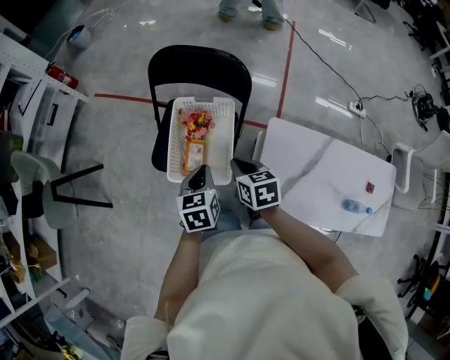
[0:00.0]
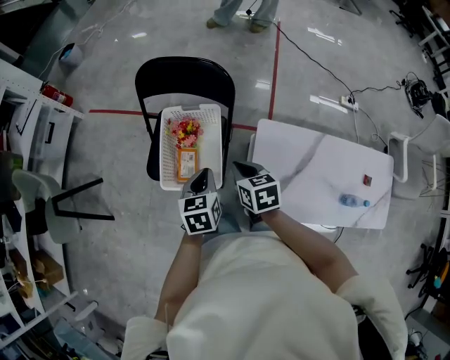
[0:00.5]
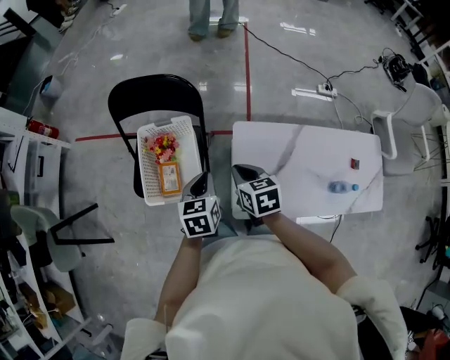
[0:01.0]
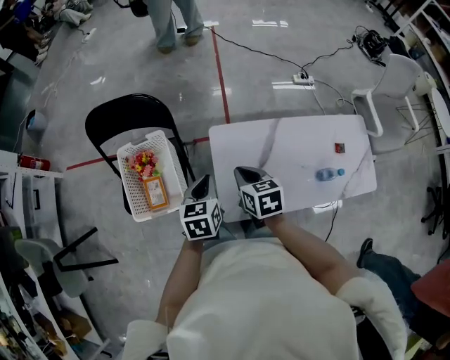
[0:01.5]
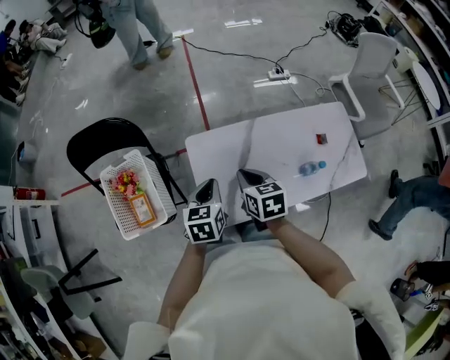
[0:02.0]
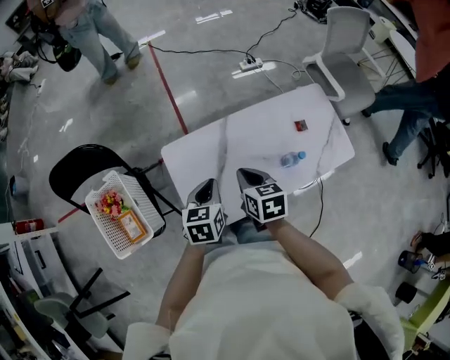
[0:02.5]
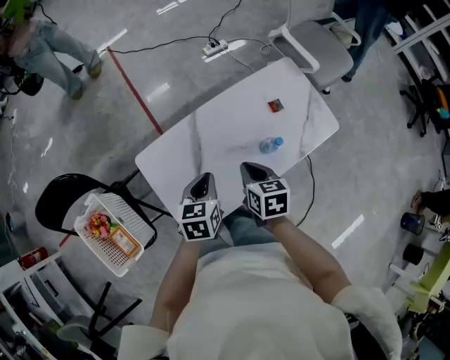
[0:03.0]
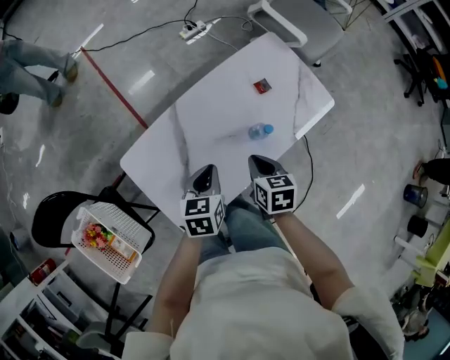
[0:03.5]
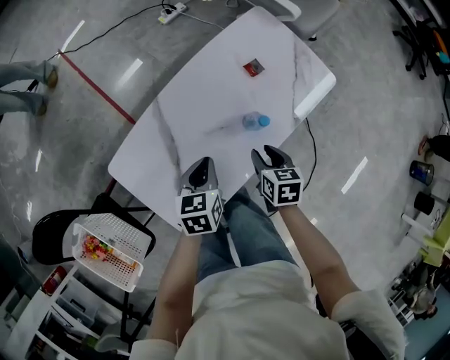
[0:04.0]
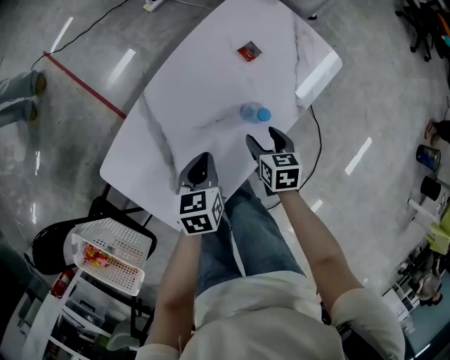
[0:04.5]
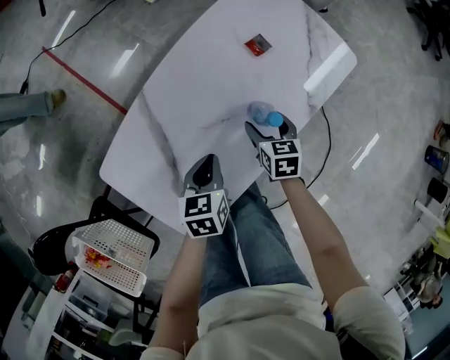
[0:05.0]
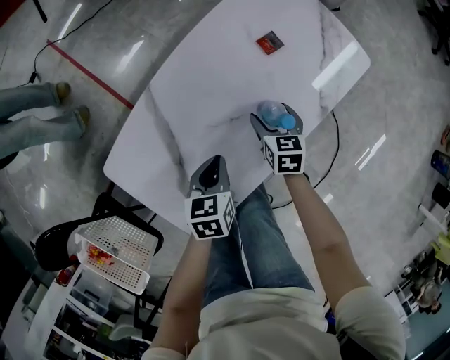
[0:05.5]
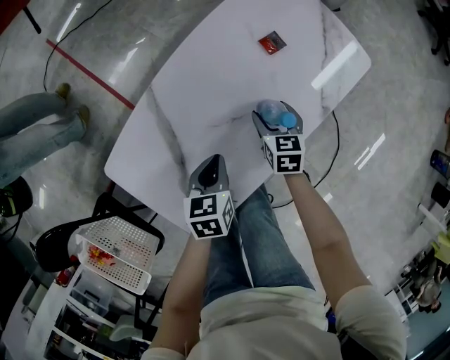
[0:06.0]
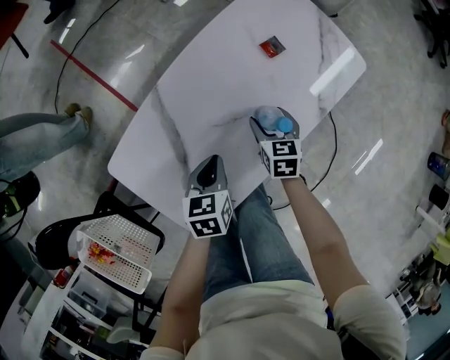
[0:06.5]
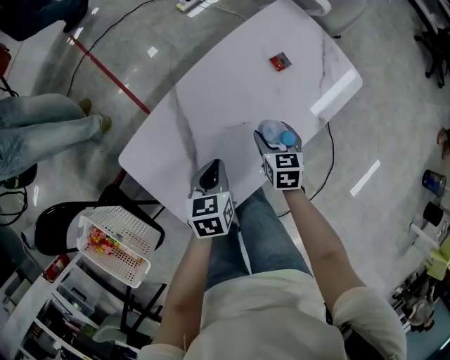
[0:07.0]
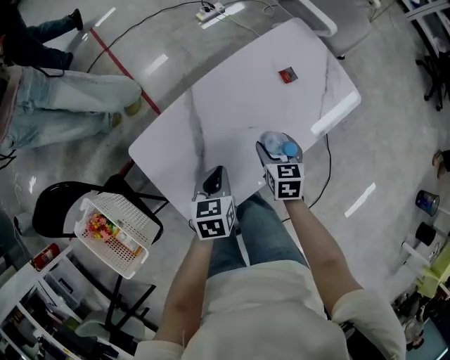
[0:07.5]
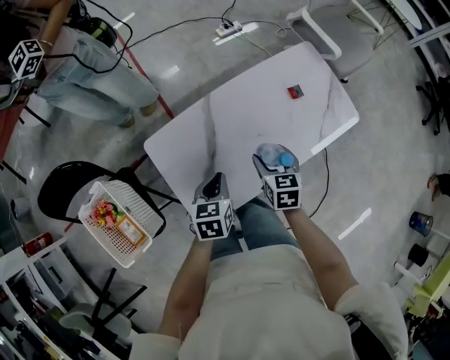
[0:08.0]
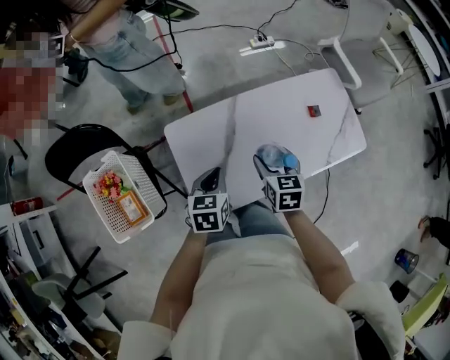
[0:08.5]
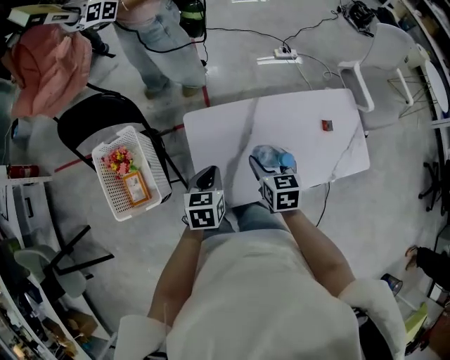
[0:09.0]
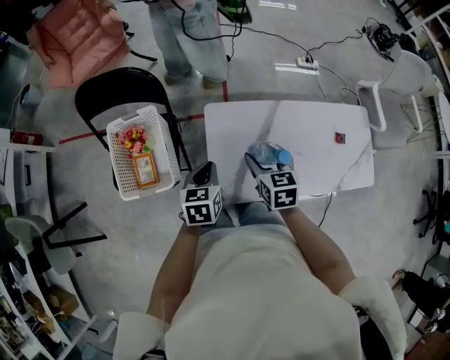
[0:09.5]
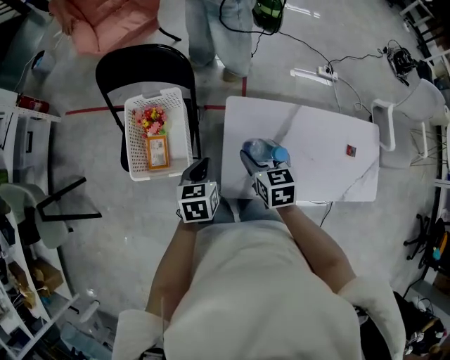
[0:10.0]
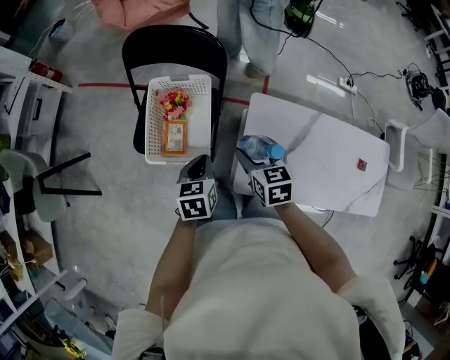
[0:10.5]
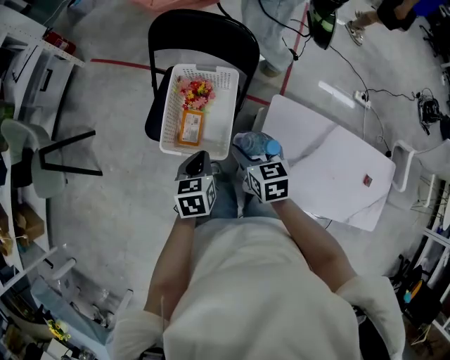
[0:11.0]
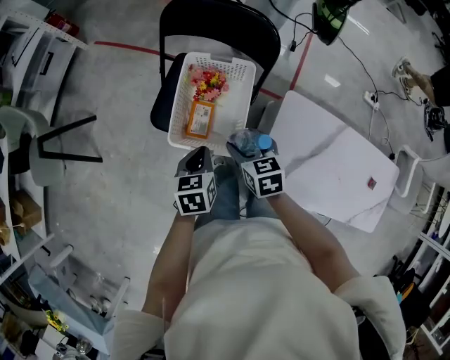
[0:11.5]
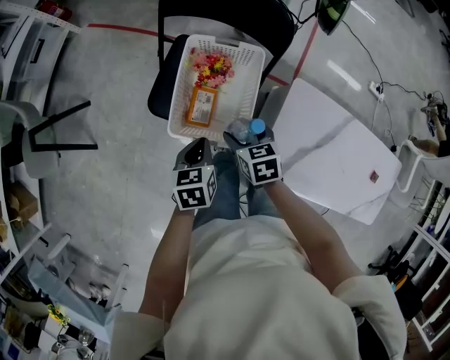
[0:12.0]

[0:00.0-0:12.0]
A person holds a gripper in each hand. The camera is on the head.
0:00.0 to 0:02.0: The right gripper ends up about 35 cm from where it was, and changes its angle by roughly 30 degrees. The left gripper moves roughly 35 cm, and swivels roughly 30 degrees.
0:02.0 to 0:04.0: The left gripper shifts by about 30 cm, and rotates approximately 30 degrees; the right gripper shifts by approximately 40 cm, and swivels some 40 degrees.
0:04.0 to 0:06.0: The right gripper goes approximately 15 cm downward and forward, and opens up; the left gripper goes approximately 10 cm downward.
0:06.0 to 0:08.0: The left gripper goes roughly 20 cm upward, backward and to the left. The right gripper goes about 25 cm upward, to the left and backward.
0:08.0 to 0:10.0: The right gripper shifts by approximately 35 cm, and rotates approximately 40 degrees. Meanwhile the left gripper ends up roughly 30 cm from where it was, and rotates roughly 40 degrees.
0:10.0 to 0:12.0: The left gripper goes approximately 20 cm to the left, and rotates some 20 degrees; the right gripper travels to the left and downward by some 30 cm, and changes its angle by some 30 degrees.

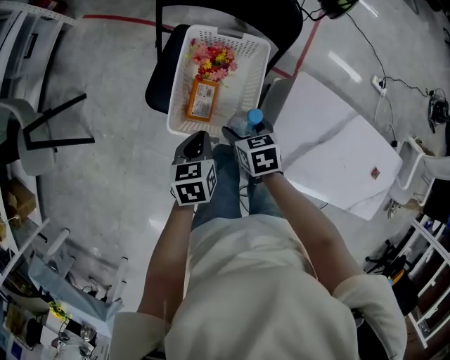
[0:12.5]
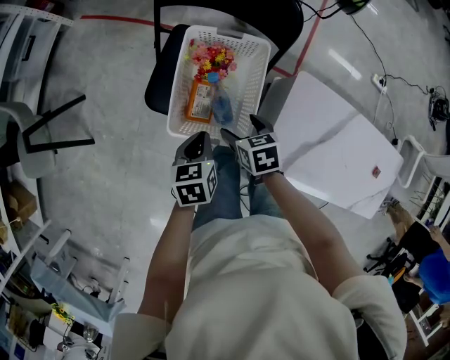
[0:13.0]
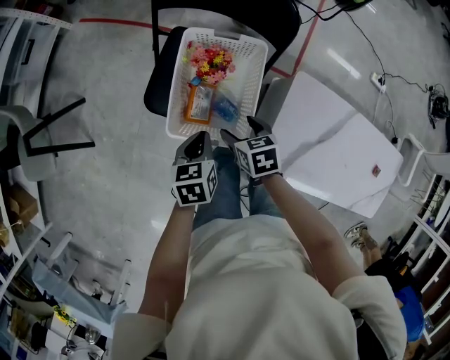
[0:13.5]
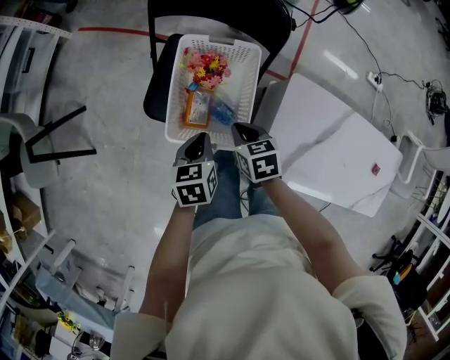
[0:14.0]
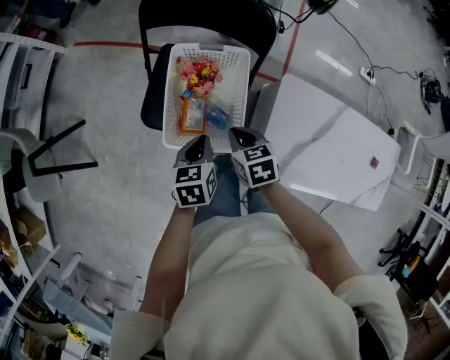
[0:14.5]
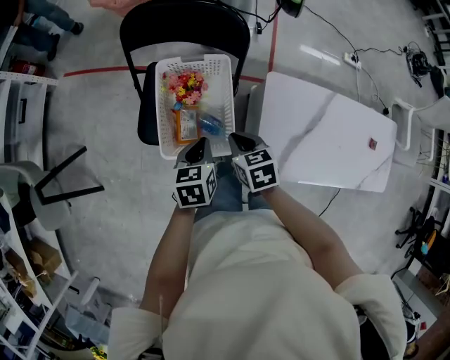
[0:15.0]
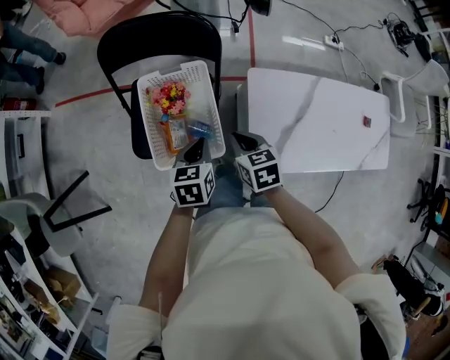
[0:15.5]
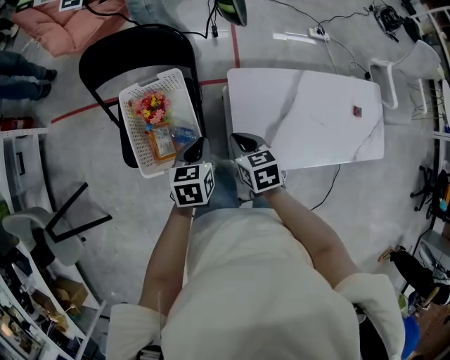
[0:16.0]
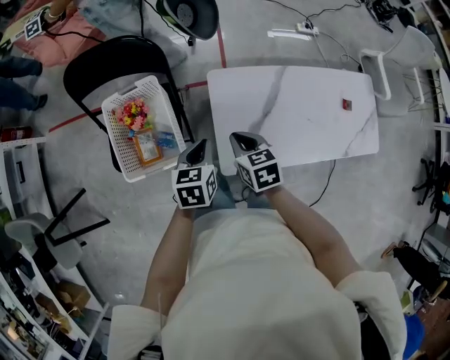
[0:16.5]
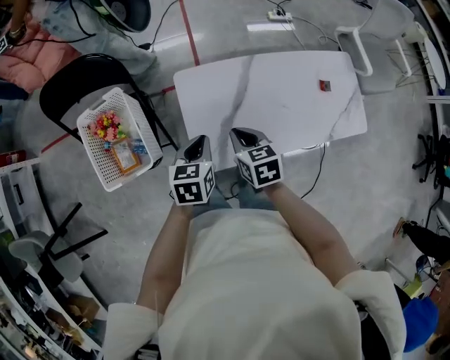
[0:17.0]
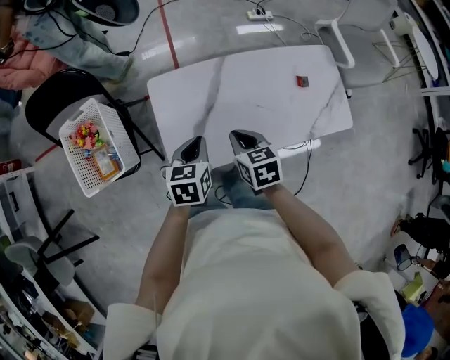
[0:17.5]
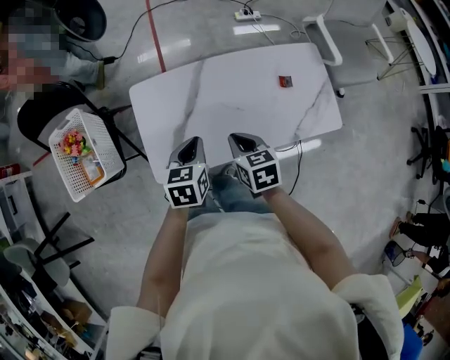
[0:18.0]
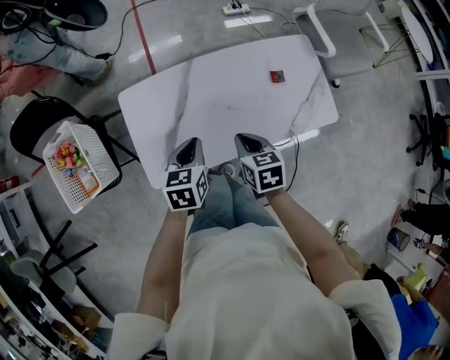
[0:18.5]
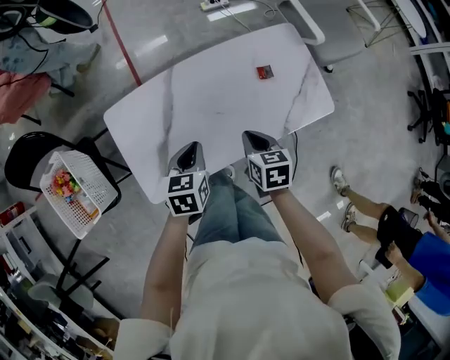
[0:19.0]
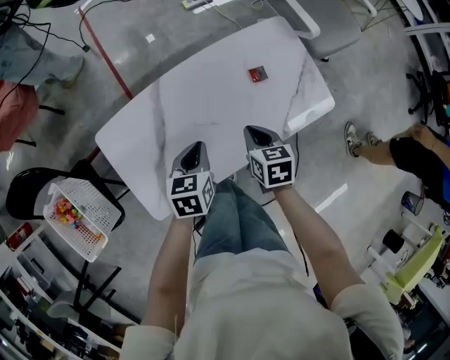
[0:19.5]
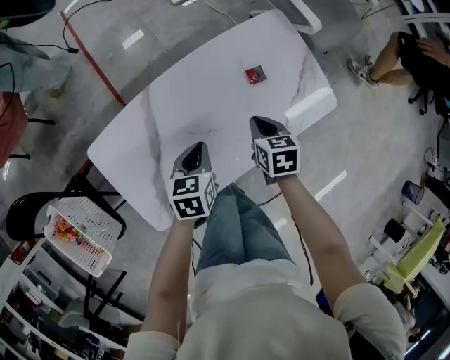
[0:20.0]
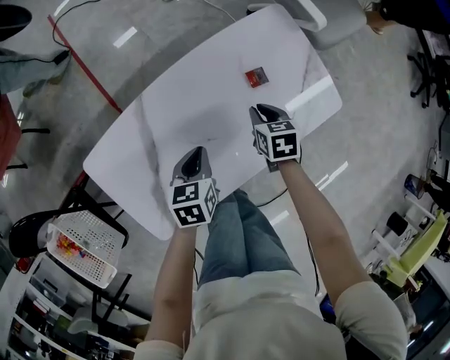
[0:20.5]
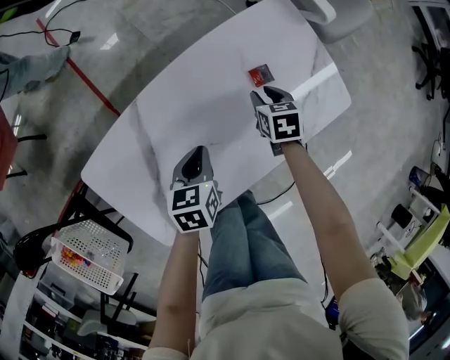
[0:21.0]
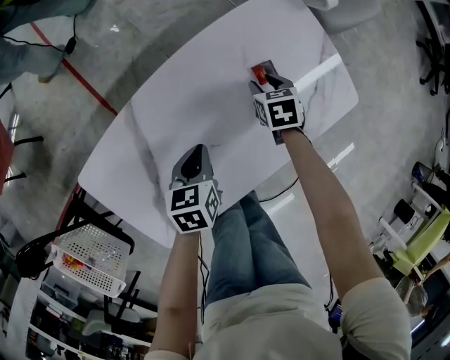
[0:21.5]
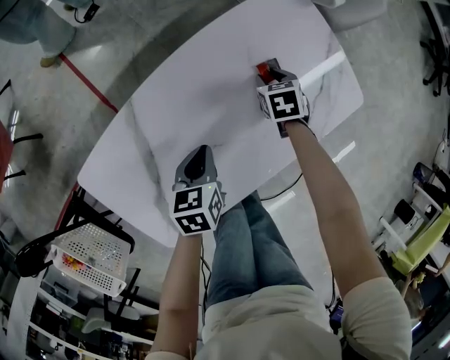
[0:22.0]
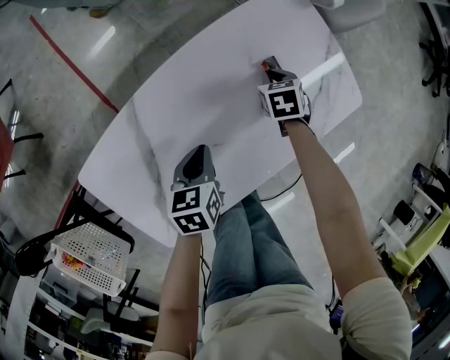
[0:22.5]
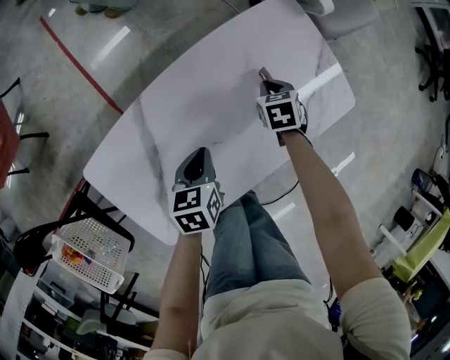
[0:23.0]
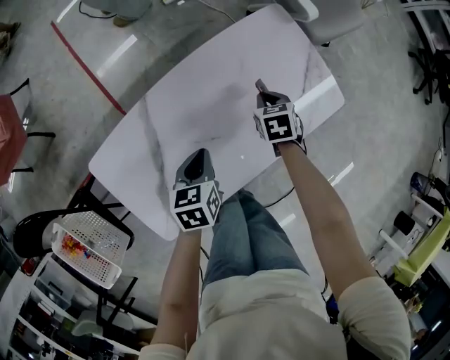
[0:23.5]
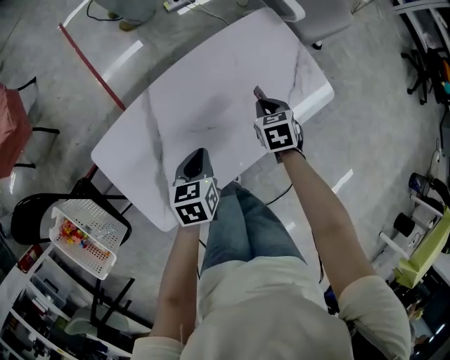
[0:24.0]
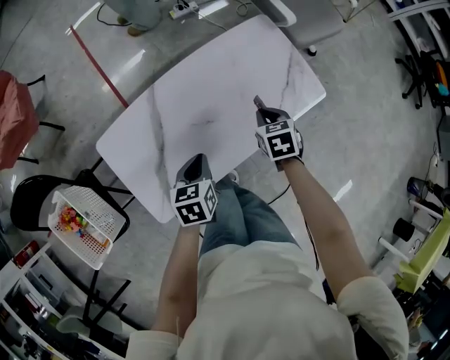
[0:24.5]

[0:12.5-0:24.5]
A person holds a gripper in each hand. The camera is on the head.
0:12.5 to 0:14.5: The right gripper closes.
0:14.5 to 0:16.5: Both grippers move to the right, approximately 20 cm. The left gripper swivels about 20 degrees. Meanwhile the right gripper turns by approximately 20 degrees.
0:16.5 to 0:18.5: Both grippers move to the right, about 35 cm.
0:18.5 to 0:20.5: Both grippers travel together forward, downward and to the right, approximately 25 cm. The right gripper rotates about 20 degrees.
0:20.5 to 0:22.5: The right gripper is displaced downward and forward by roughly 15 cm; the left gripper goes roughly 5 cm downward.
0:22.5 to 0:24.5: The left gripper moves backward and upward, about 20 cm. The right gripper is displaced upward and backward by approximately 30 cm.

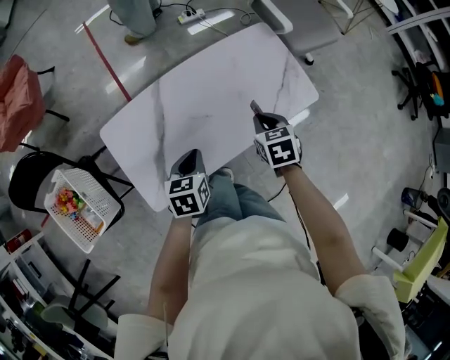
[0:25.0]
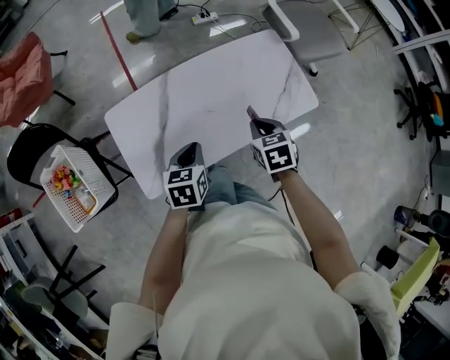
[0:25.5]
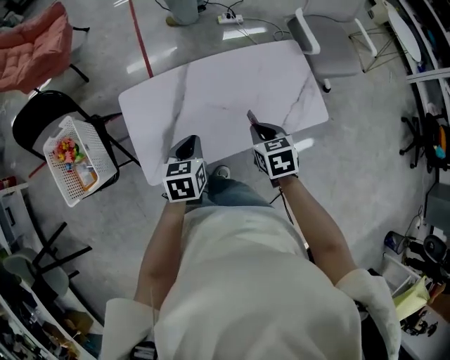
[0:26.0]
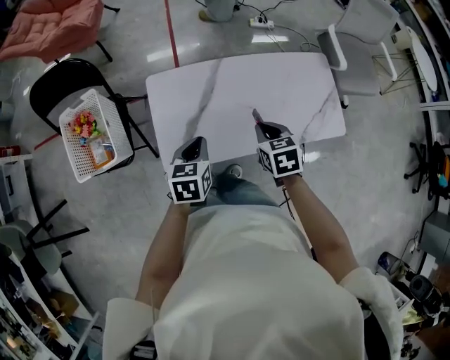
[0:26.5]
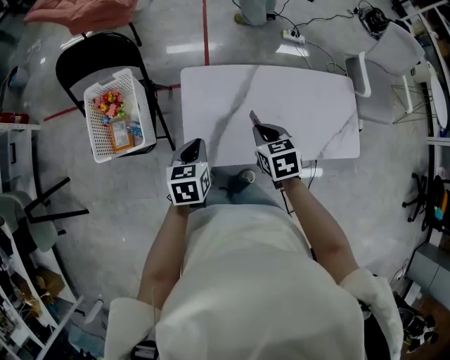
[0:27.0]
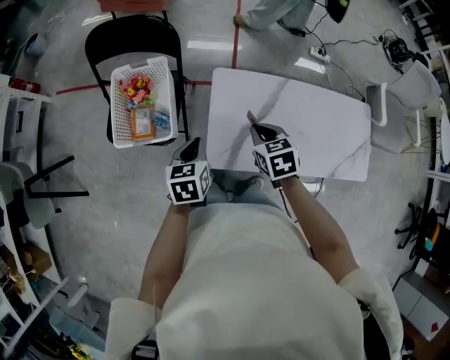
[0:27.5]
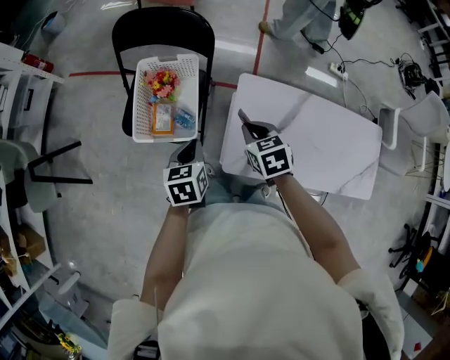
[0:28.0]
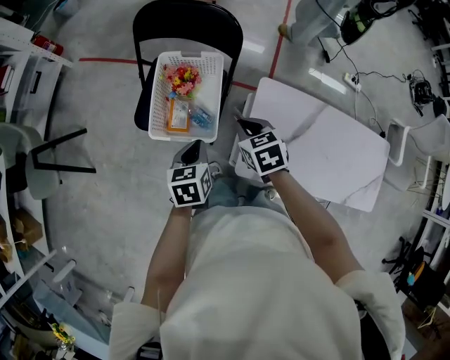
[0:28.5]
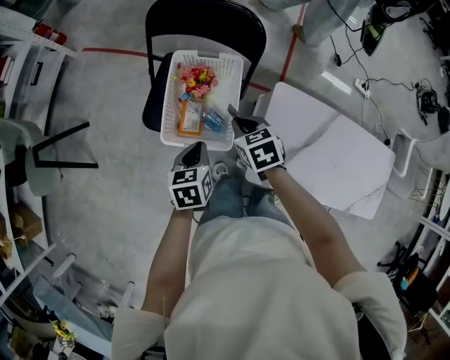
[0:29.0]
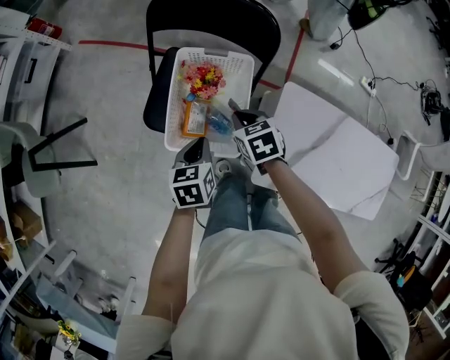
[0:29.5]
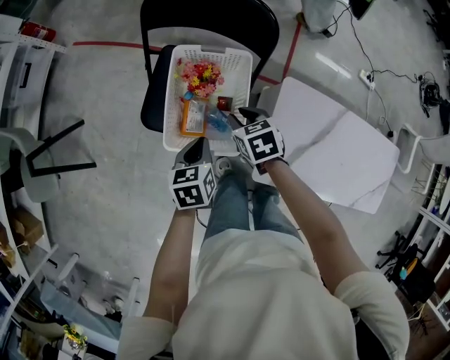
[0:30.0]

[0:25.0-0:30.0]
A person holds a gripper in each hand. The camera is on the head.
0:25.0 to 0:27.5: The right gripper changes place by approximately 40 cm, and changes its angle by approximately 40 degrees. The left gripper moves about 40 cm, and changes its angle by some 40 degrees.
0:27.5 to 0:30.0: The grippers both shift to the left and forward by approximately 30 cm.
